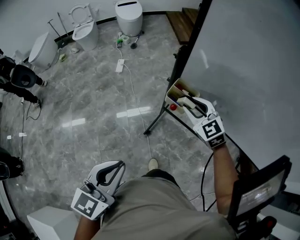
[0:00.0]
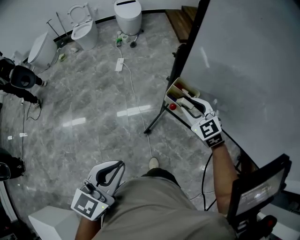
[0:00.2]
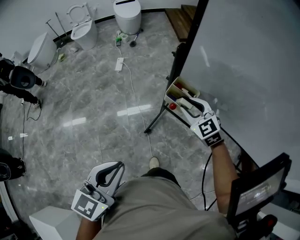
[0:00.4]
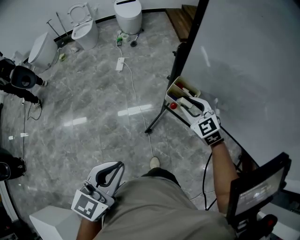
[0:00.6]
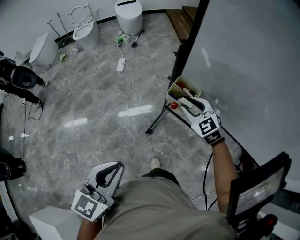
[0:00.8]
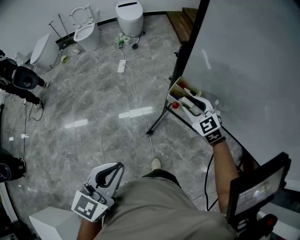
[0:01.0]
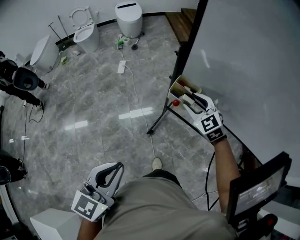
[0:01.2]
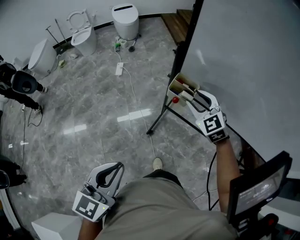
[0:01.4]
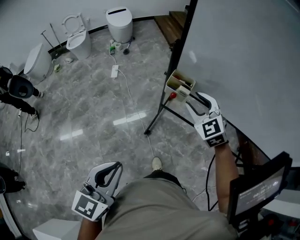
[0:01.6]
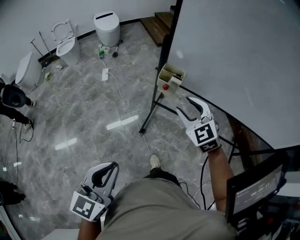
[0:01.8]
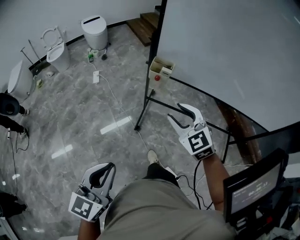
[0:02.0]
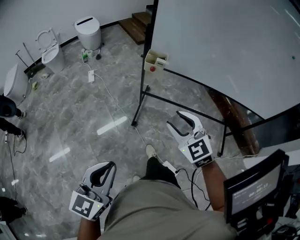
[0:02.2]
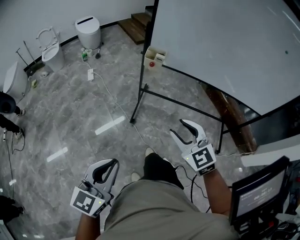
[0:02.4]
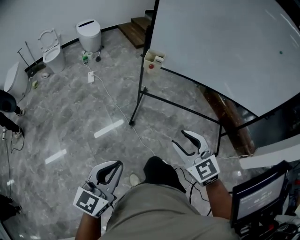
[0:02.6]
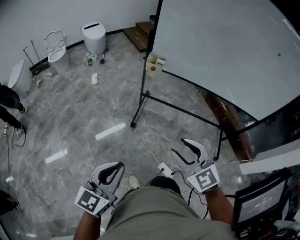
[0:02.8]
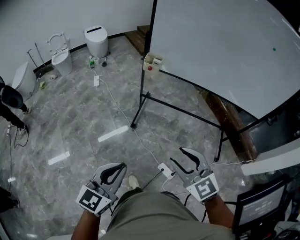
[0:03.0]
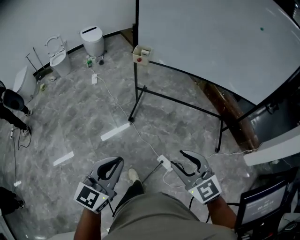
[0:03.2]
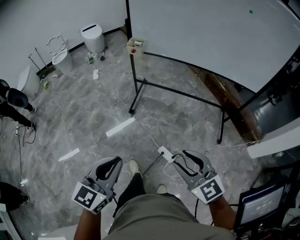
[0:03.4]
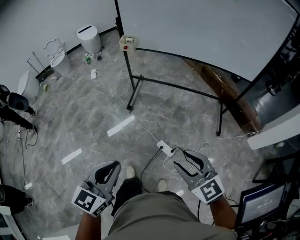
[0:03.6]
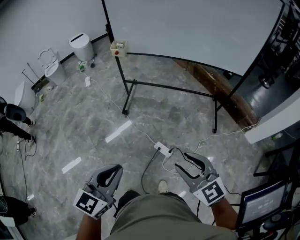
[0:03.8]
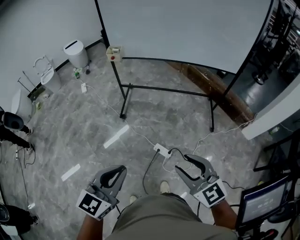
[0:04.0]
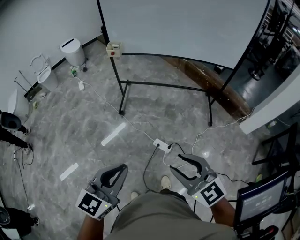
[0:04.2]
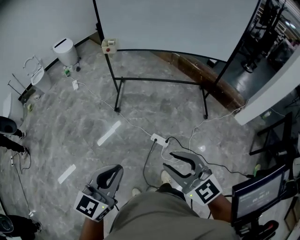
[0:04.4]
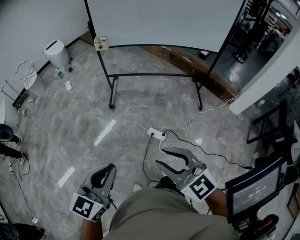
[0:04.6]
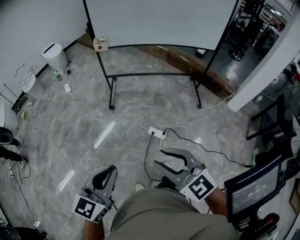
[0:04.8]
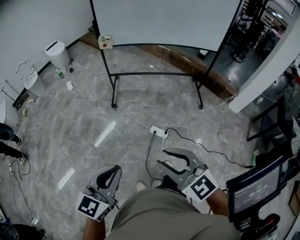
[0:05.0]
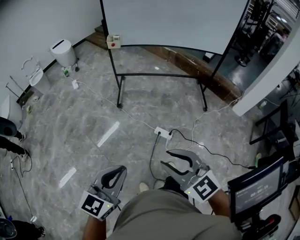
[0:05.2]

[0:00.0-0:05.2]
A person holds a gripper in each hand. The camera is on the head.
0:00.0 to 0:01.8: The left gripper is displaced backward and to the left by approximately 15 cm, while the right gripper is displaced backward by roughly 15 cm.
0:01.8 to 0:03.4: The left gripper goes approximately 40 cm backward and to the right. Meanwhile the right gripper moves backward, about 60 cm, and rotates roughly 20 degrees.
0:03.4 to 0:05.2: The left gripper moves backward, about 20 cm, and changes its angle by some 20 degrees. The right gripper moves backward and to the left, approximately 25 cm.

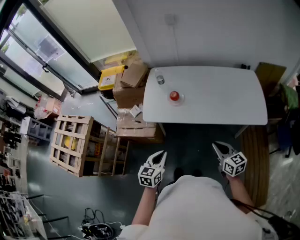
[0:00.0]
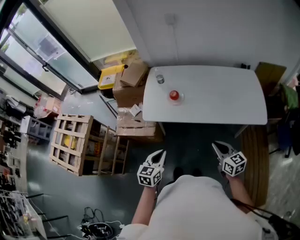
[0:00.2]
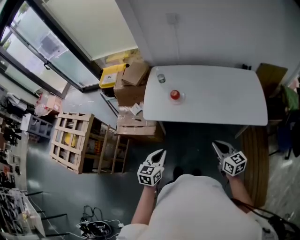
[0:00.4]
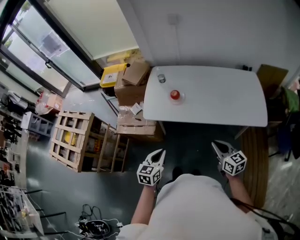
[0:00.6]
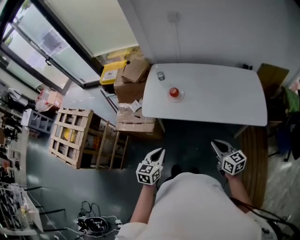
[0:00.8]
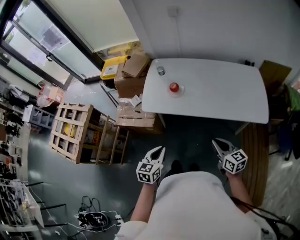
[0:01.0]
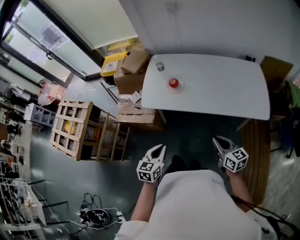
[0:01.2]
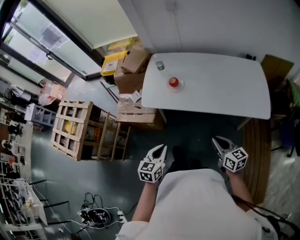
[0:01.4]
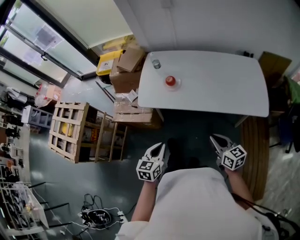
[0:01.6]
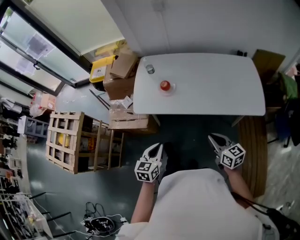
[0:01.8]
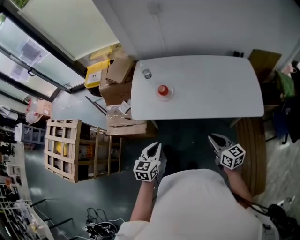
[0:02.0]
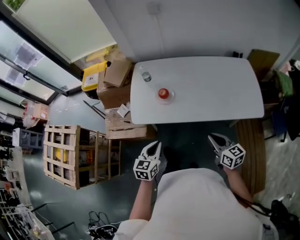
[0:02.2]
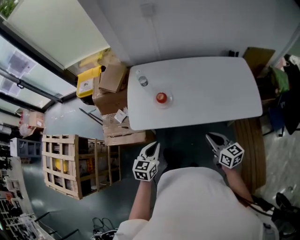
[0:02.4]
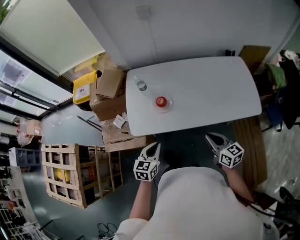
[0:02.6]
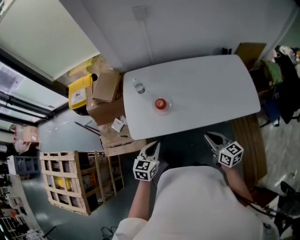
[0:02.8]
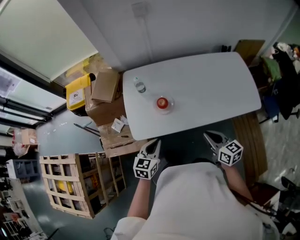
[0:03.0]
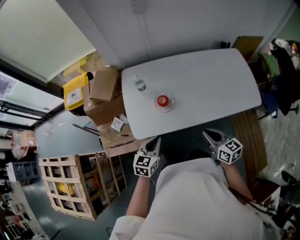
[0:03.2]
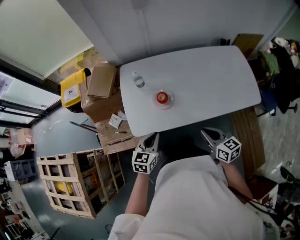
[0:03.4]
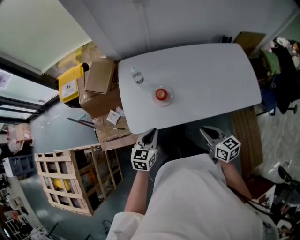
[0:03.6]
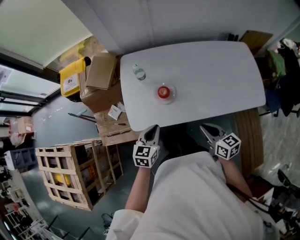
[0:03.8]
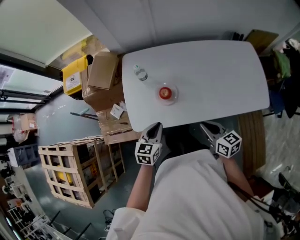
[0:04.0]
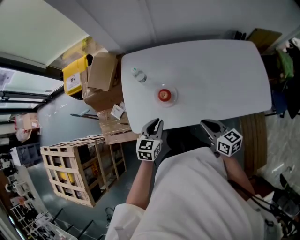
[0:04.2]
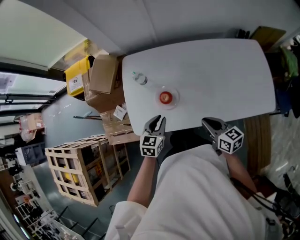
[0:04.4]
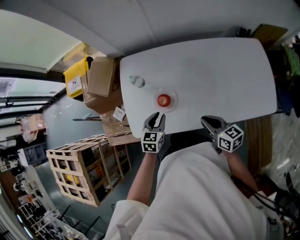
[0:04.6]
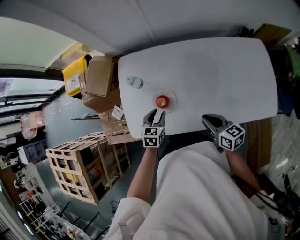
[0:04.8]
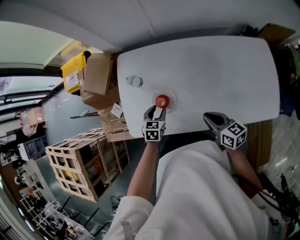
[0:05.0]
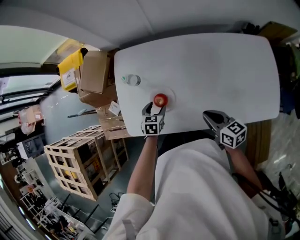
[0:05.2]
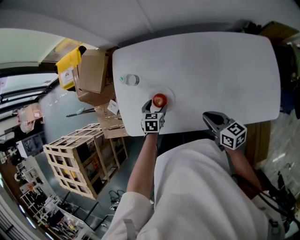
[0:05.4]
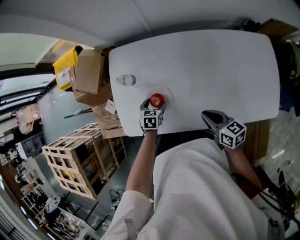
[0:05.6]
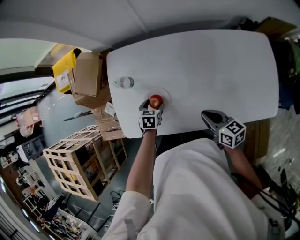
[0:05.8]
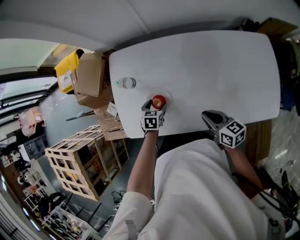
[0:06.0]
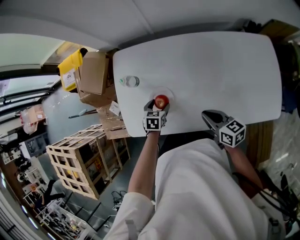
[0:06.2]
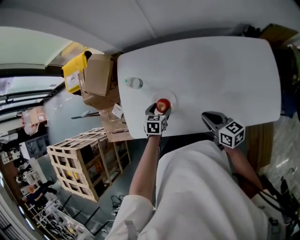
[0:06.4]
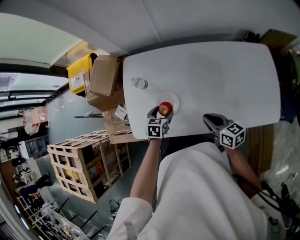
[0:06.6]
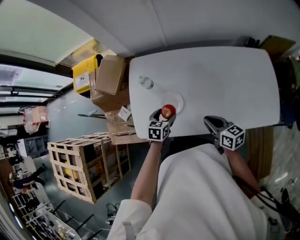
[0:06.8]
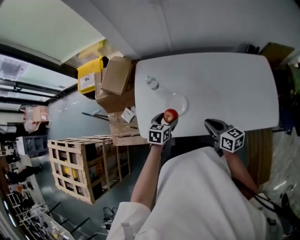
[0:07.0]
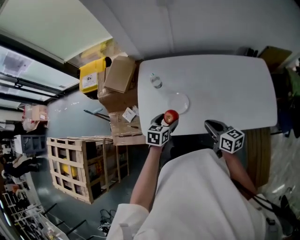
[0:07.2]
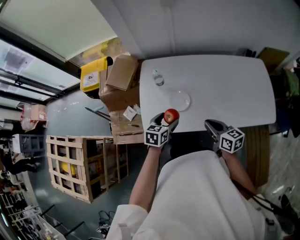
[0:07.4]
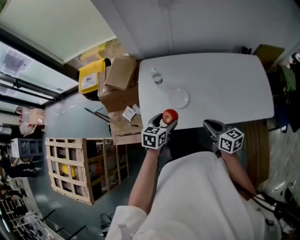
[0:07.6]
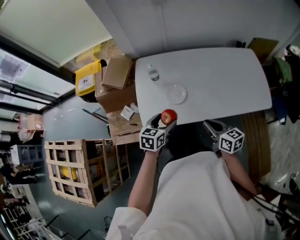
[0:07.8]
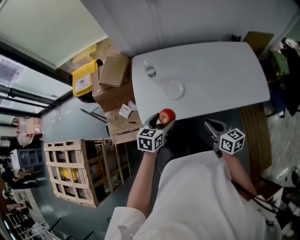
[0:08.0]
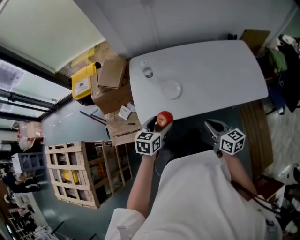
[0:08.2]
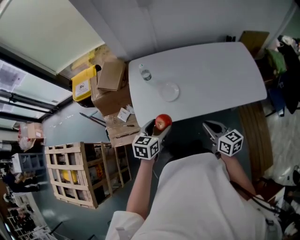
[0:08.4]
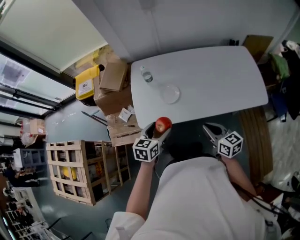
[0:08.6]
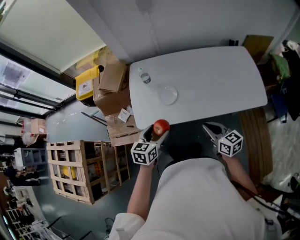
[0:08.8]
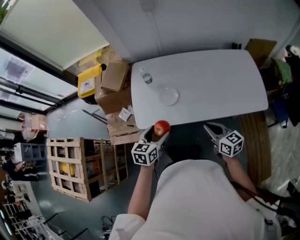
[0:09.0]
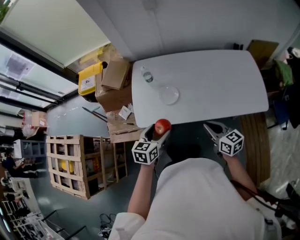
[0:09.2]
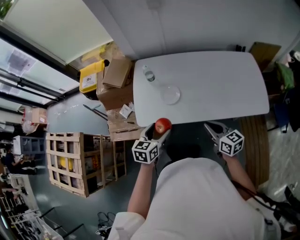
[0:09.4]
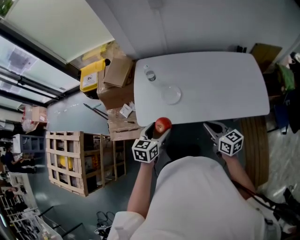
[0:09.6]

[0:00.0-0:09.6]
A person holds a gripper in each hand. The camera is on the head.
0:00.0 to 0:01.6: The grippers move only a little.
0:01.6 to 0:03.2: The left gripper moves forward, roughly 25 cm, and swivels approximately 20 degrees, while the right gripper travels forward and to the left by roughly 20 cm.
0:03.2 to 0:04.8: The two grippers go roughly 20 cm forward and downward. The left gripper opens up.
0:04.8 to 0:06.4: The left gripper heads downward, covering some 5 cm, and opens up.
0:06.4 to 0:08.0: The right gripper shifts approximately 20 cm backward and to the left. The left gripper heads backward, upward and to the left, covering about 25 cm, and turns by some 20 degrees.
0:08.0 to 0:09.6: The left gripper shifts by about 5 cm; the right gripper heads to the right, covering about 5 cm.

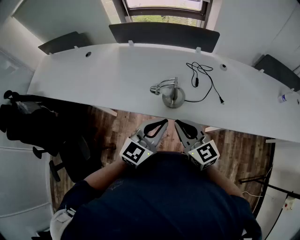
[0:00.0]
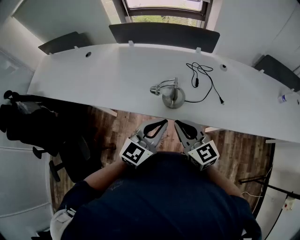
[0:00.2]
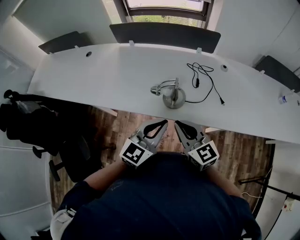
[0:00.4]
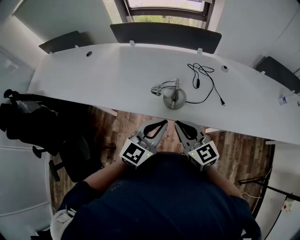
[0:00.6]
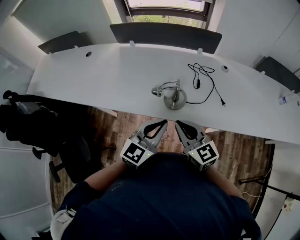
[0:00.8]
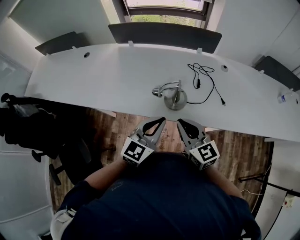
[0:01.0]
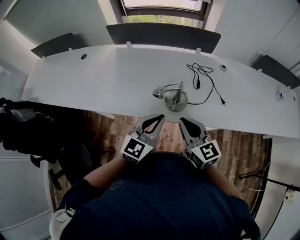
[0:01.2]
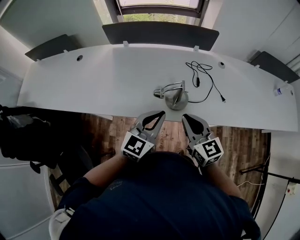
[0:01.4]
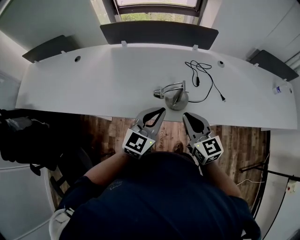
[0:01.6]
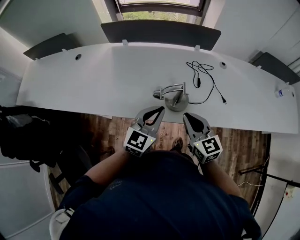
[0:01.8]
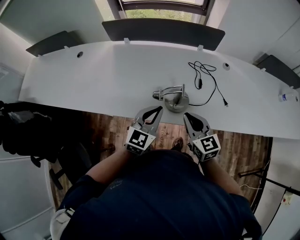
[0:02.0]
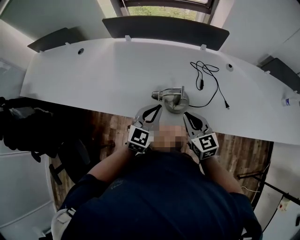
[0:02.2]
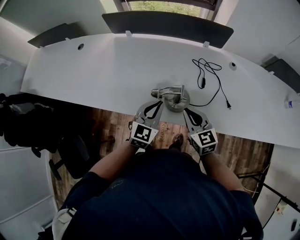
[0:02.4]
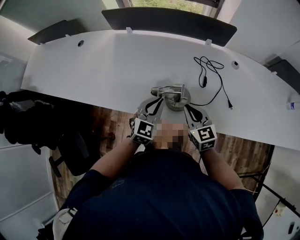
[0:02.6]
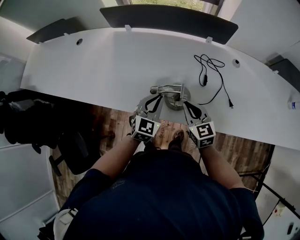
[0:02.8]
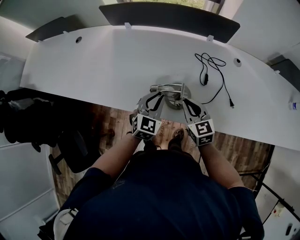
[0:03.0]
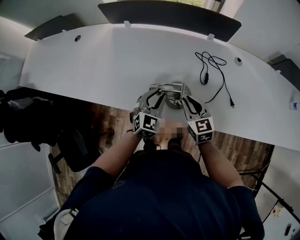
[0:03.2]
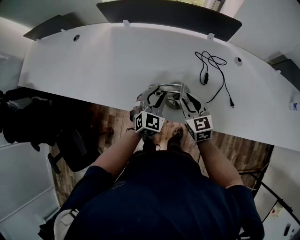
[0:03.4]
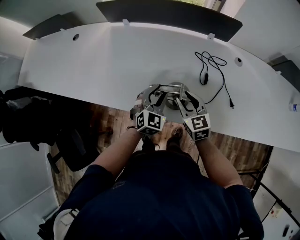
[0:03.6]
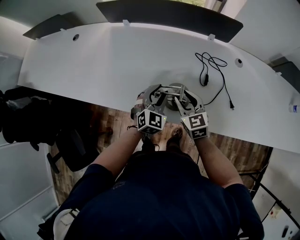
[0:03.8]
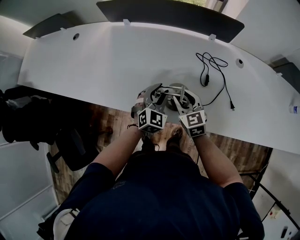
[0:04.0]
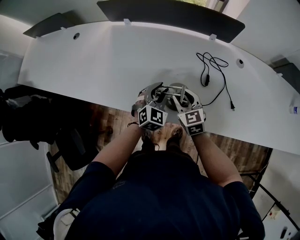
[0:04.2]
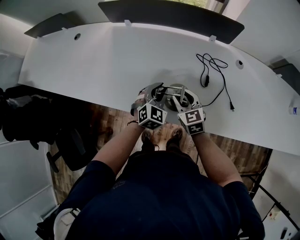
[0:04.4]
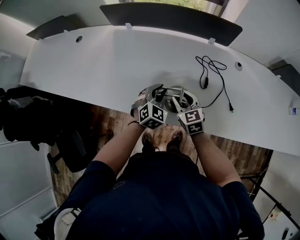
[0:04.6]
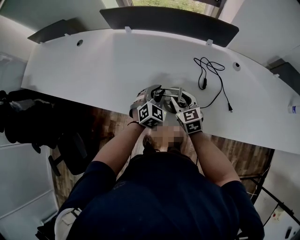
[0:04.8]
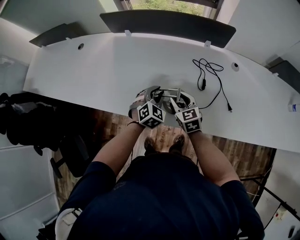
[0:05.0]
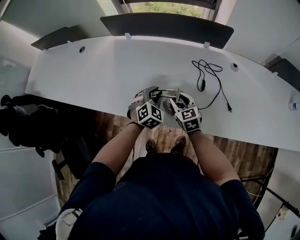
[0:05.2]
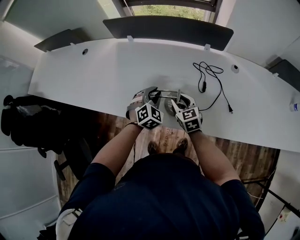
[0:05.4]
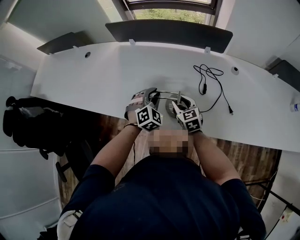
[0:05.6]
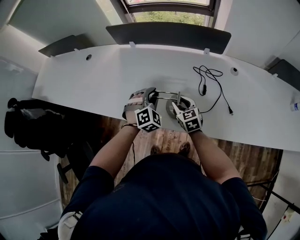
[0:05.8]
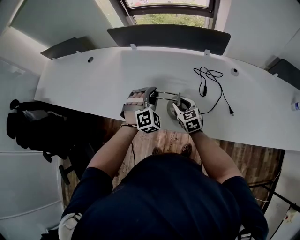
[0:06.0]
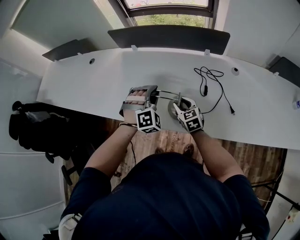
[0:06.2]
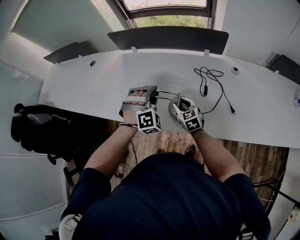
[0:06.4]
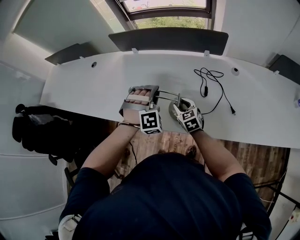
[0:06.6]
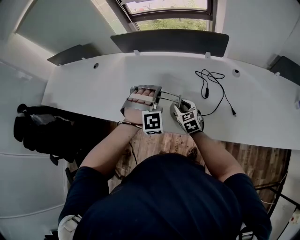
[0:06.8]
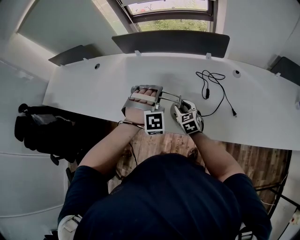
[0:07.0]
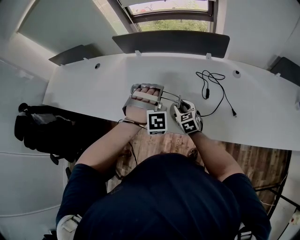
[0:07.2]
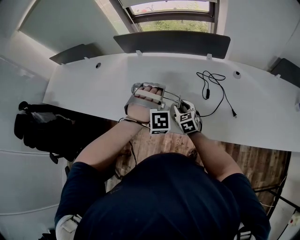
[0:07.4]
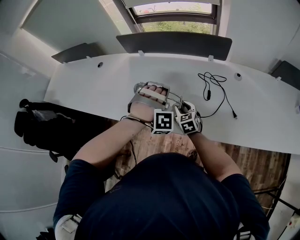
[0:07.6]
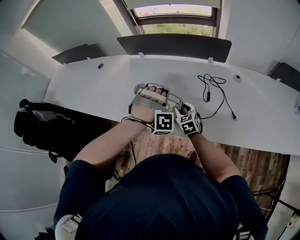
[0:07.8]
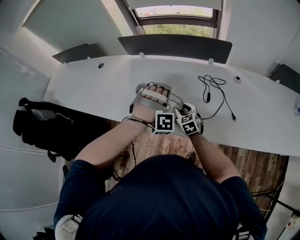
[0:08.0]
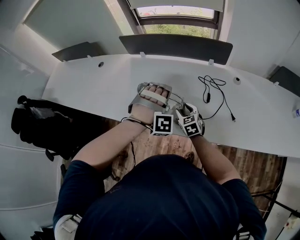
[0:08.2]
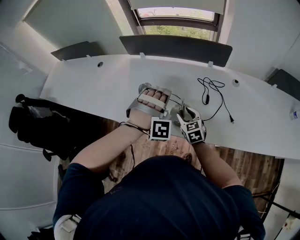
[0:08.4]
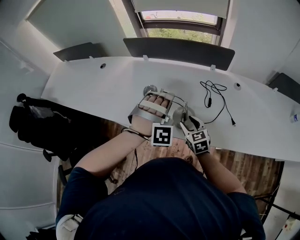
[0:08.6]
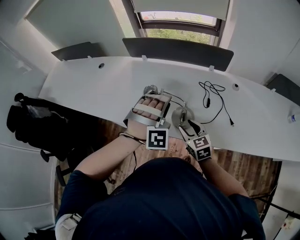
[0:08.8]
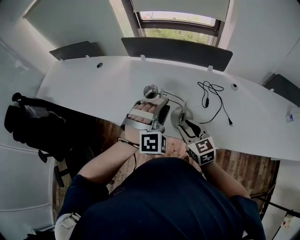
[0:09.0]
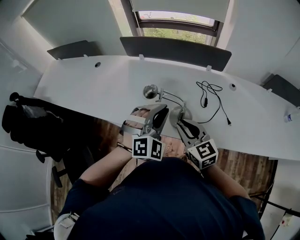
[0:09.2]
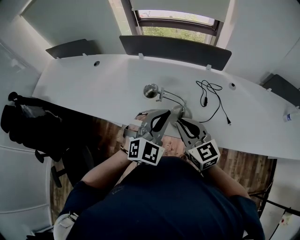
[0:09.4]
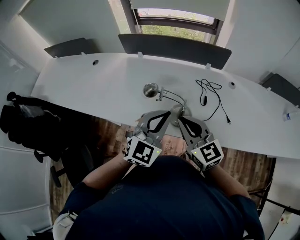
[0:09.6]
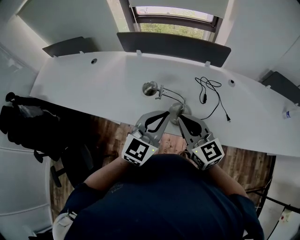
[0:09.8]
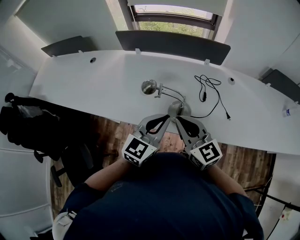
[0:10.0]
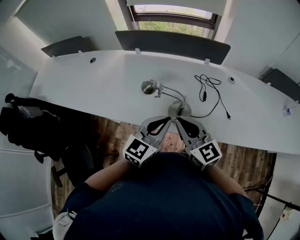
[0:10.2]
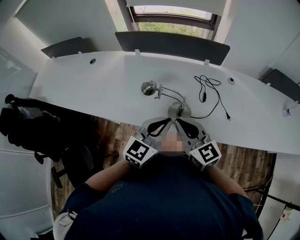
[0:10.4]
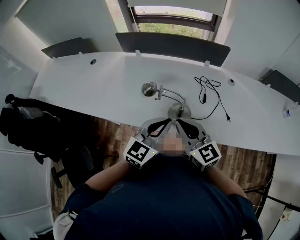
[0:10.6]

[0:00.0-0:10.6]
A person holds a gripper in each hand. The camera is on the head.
0:00.0 to 0:01.6: The left gripper travels forward and to the left by about 10 cm, while the right gripper is displaced forward by about 5 cm.
0:01.6 to 0:03.0: Both grippers travel together downward and forward, about 20 cm. The left gripper swivels roughly 30 degrees.
0:03.0 to 0:04.6: The two grippers go about 5 cm forward. The right gripper opens up.
0:04.6 to 0:06.0: The left gripper travels upward by approximately 10 cm, and rotates approximately 40 degrees.
0:06.0 to 0:07.6: The left gripper moves upward, approximately 5 cm, and turns by some 40 degrees.
0:07.6 to 0:09.0: The right gripper moves upward and backward, approximately 20 cm. The left gripper heads upward and backward, covering some 10 cm, and swivels approximately 30 degrees.
0:09.0 to 0:10.6: The left gripper moves backward, roughly 5 cm, rolls counterclockwise, seen from behind, by about 70 degrees, and closes. The right gripper heads upward, covering roughly 10 cm, and closes up.
